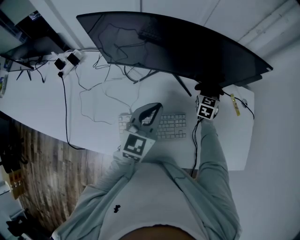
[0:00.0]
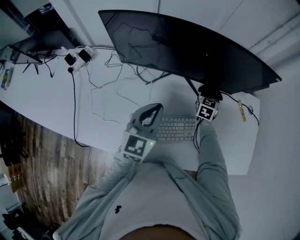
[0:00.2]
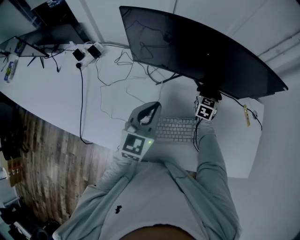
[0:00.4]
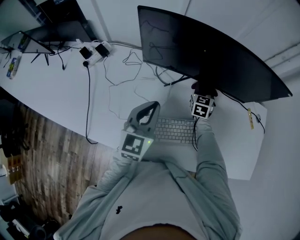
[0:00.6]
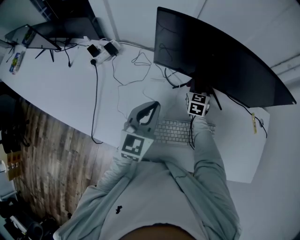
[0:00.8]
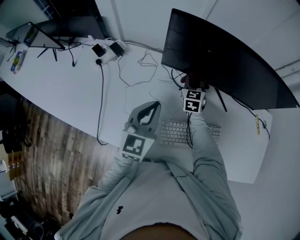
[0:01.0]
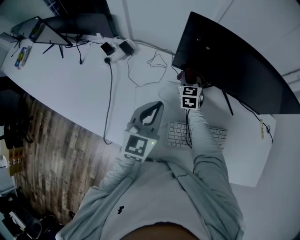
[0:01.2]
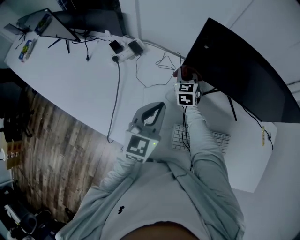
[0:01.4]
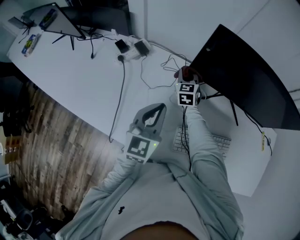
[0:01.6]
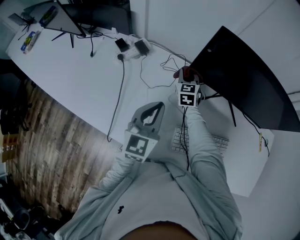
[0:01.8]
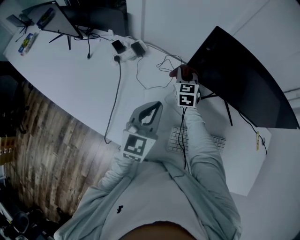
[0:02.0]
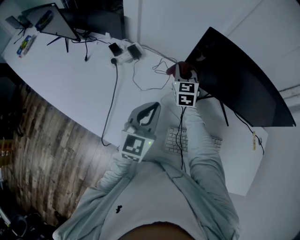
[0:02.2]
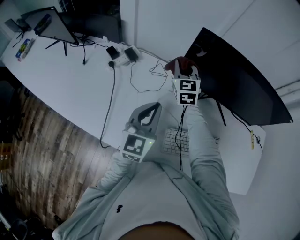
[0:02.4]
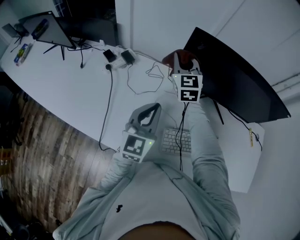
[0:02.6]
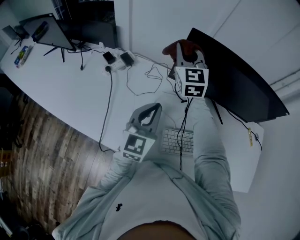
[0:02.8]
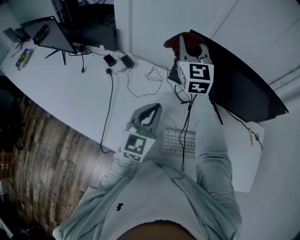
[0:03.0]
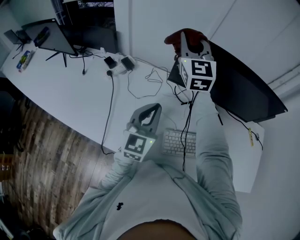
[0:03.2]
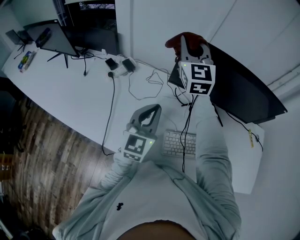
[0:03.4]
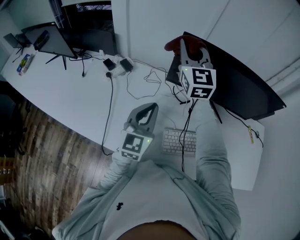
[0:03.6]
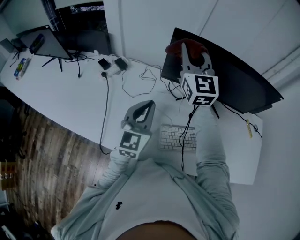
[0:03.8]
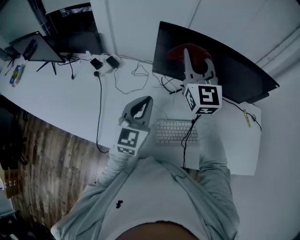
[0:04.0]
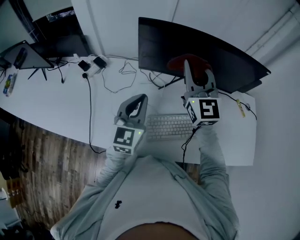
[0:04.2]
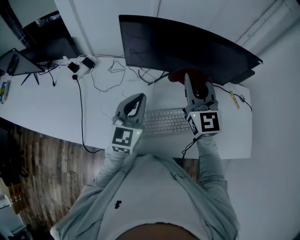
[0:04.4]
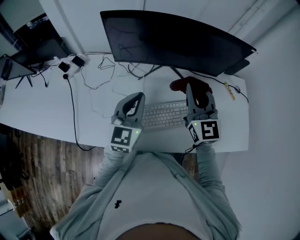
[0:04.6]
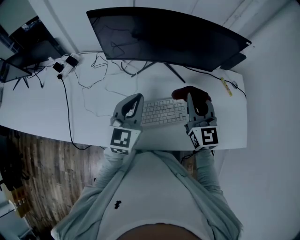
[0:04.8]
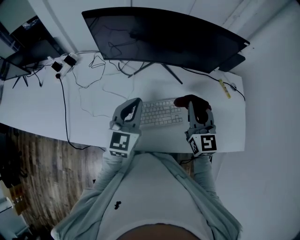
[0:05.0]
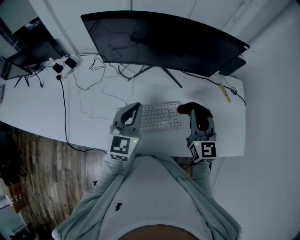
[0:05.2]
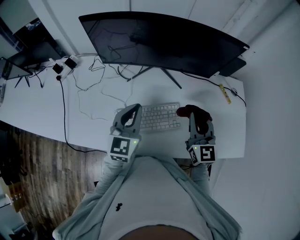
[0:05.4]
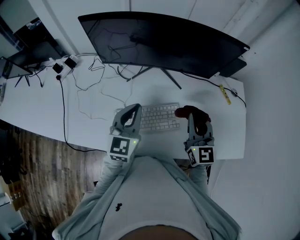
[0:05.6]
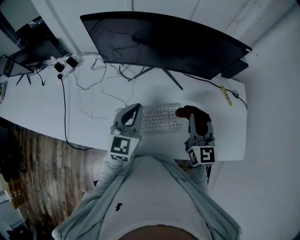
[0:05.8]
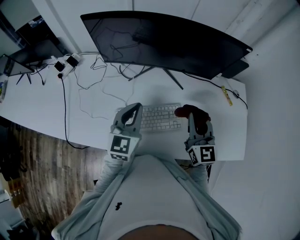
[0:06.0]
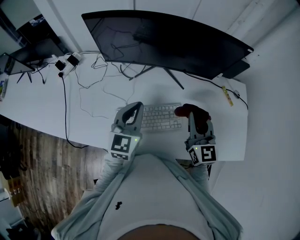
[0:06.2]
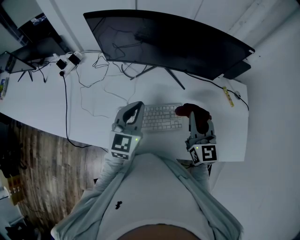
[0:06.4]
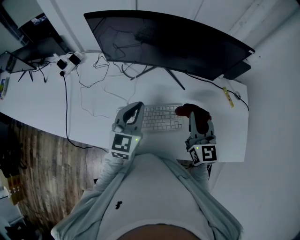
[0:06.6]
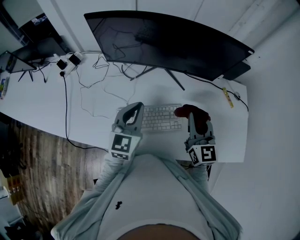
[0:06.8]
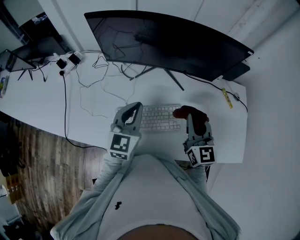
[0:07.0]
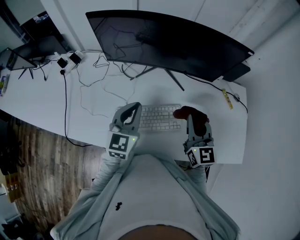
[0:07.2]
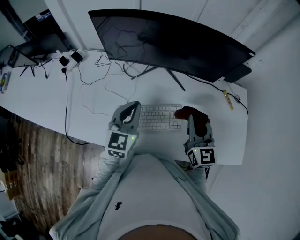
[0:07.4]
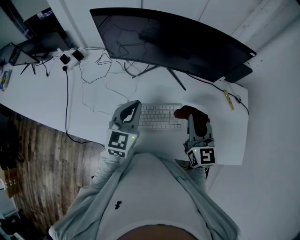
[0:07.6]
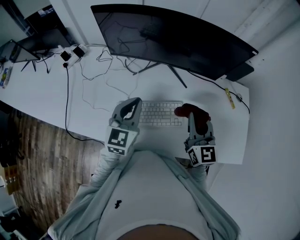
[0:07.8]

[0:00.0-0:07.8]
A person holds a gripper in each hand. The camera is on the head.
0.0 to 1.6 s: The right gripper moves about 50 cm, and changes its angle by roughly 30 degrees. Meanwhile the left gripper ends up some 30 cm from where it was.
1.6 to 3.2 s: The right gripper moves upward, roughly 35 cm, and tips its fingers upward by about 30 degrees. The left gripper ends up approximately 5 cm from where it was.
3.2 to 4.6 s: The left gripper shifts roughly 15 cm to the right. Meanwhile the right gripper travels to the right and backward by some 35 cm.
4.6 to 6.2 s: The left gripper shifts about 5 cm to the right. The right gripper goes approximately 15 cm to the right and downward.
6.2 to 7.8 s: Neither gripper changes place.

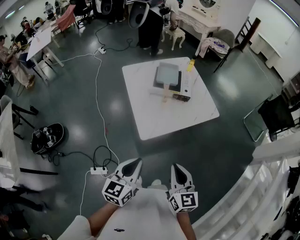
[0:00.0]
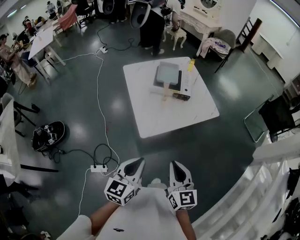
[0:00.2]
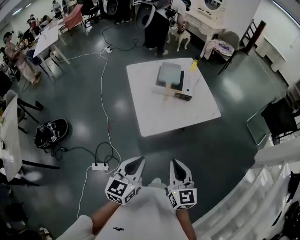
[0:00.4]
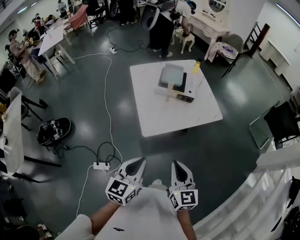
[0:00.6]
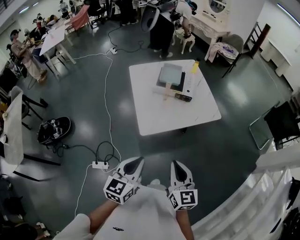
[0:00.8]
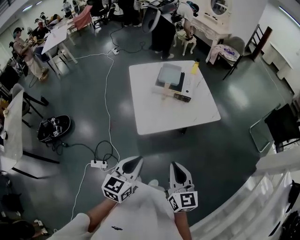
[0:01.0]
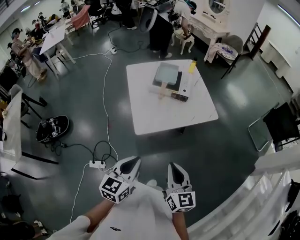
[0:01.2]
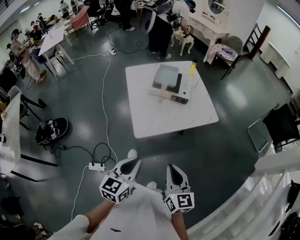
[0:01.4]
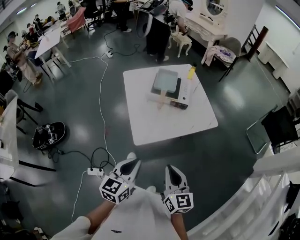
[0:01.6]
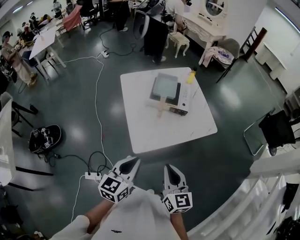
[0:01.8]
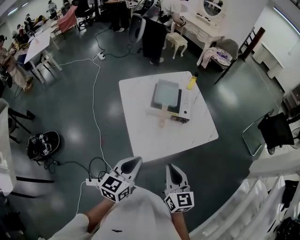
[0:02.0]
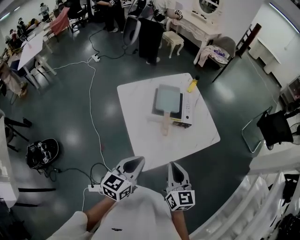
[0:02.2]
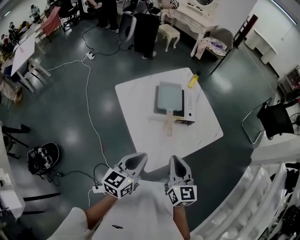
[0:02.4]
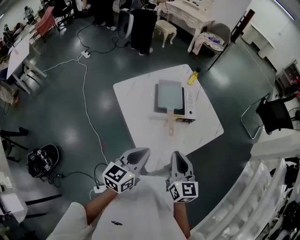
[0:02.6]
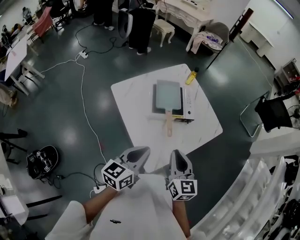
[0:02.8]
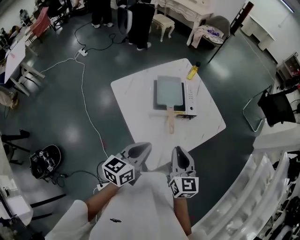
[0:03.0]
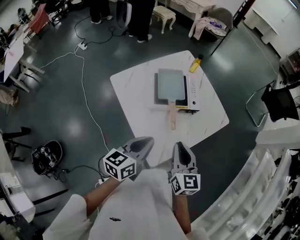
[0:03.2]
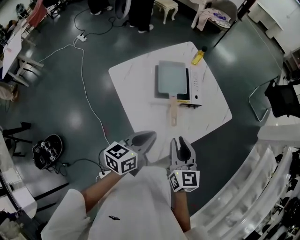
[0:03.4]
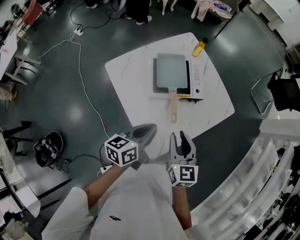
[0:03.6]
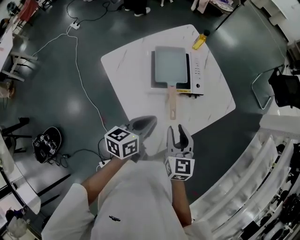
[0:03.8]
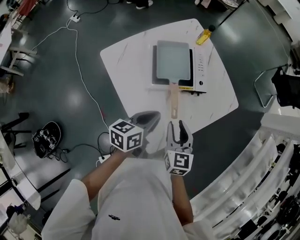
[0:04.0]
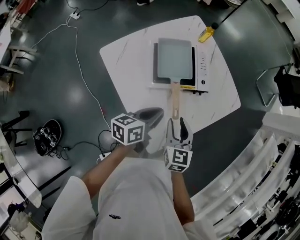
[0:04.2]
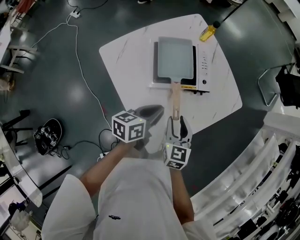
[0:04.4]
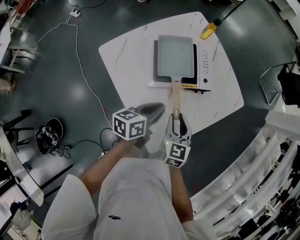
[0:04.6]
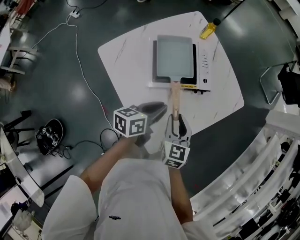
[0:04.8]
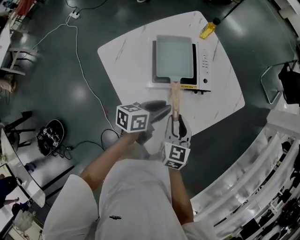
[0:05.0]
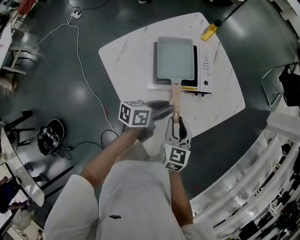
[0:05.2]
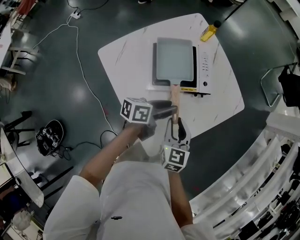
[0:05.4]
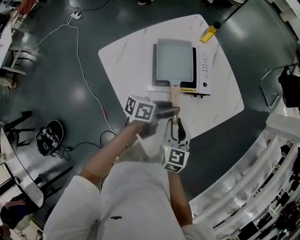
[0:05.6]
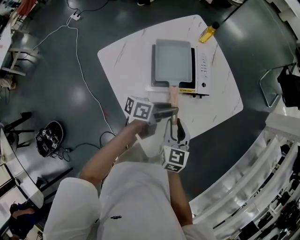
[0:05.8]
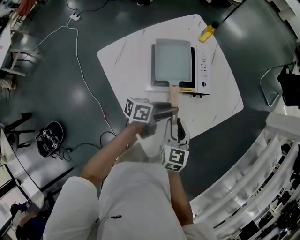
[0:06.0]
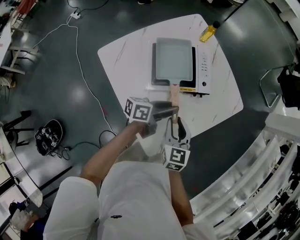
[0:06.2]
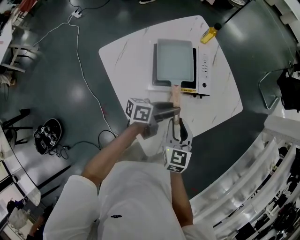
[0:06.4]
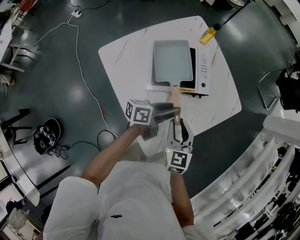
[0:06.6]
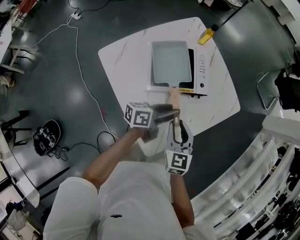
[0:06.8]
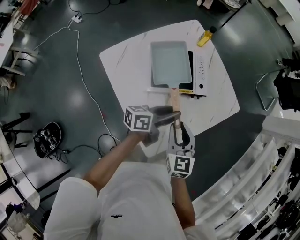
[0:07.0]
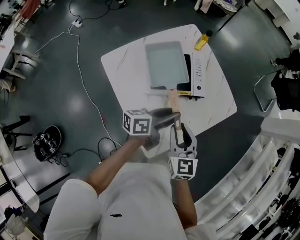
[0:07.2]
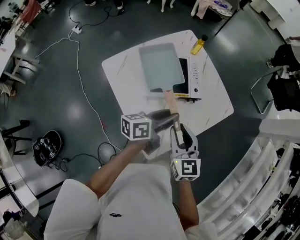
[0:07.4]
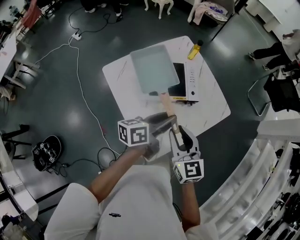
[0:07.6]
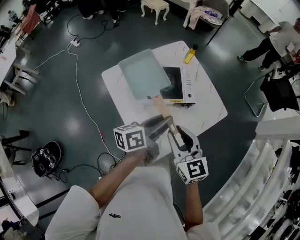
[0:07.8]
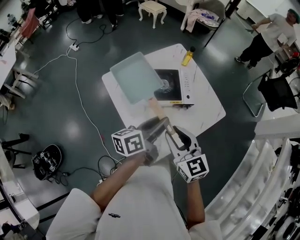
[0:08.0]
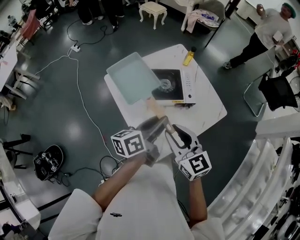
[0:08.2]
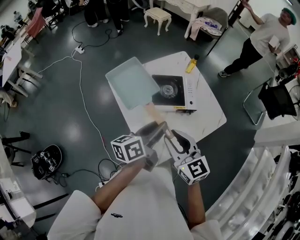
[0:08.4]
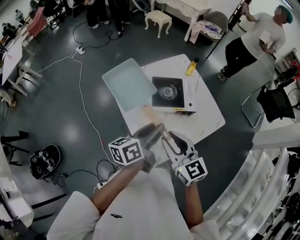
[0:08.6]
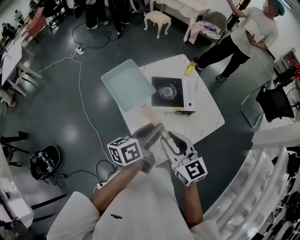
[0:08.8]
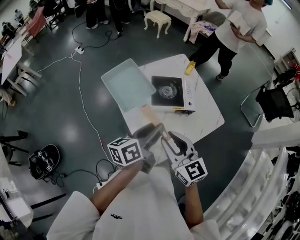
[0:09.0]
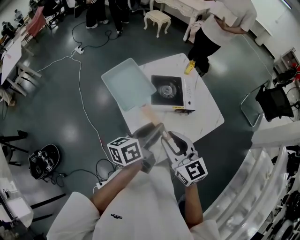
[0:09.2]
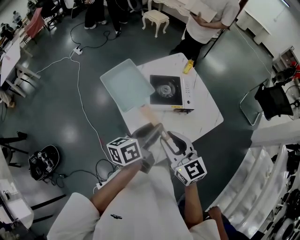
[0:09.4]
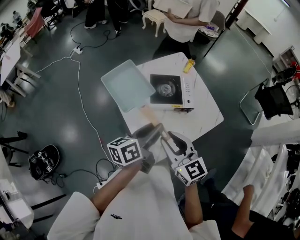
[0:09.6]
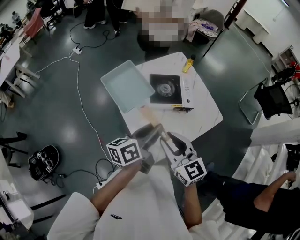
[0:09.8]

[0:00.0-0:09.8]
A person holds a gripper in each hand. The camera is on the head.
0.0 to 1.4 s: Both grippers travel together to the right, some 5 cm.
1.4 to 2.8 s: The grippers both shift forward and to the left by roughly 35 cm. The left gripper turns by about 30 degrees.
2.8 to 4.2 s: Both grippers travel together downward and forward, approximately 20 cm. The right gripper opens its fingers, while the left gripper swivels about 30 degrees.
4.2 to 5.6 s: The left gripper goes roughly 5 cm forward, turns by some 20 degrees, and opens up.
5.6 to 7.0 s: The grippers both shift upward by roughly 5 cm.
7.0 to 8.4 s: The two grippers go about 15 cm upward. The left gripper changes its angle by roughly 30 degrees; the right gripper swivels about 30 degrees.
8.4 to 9.8 s: The grippers move only a little.

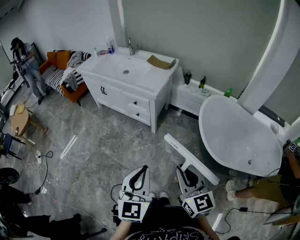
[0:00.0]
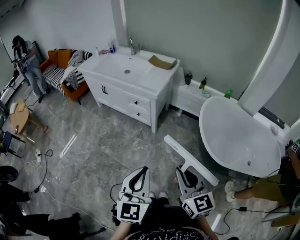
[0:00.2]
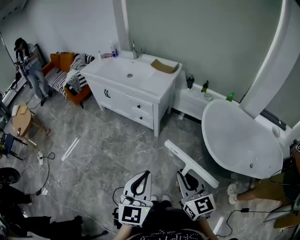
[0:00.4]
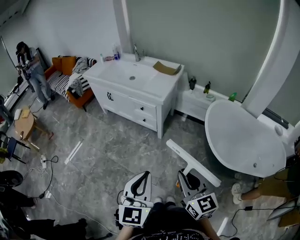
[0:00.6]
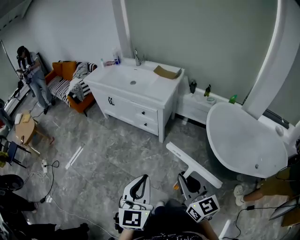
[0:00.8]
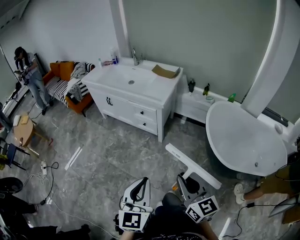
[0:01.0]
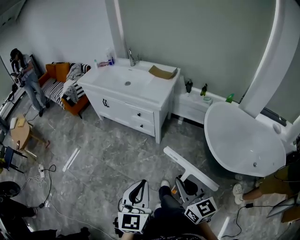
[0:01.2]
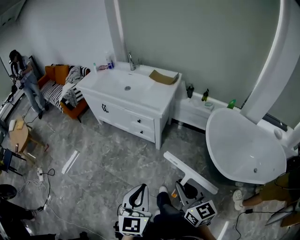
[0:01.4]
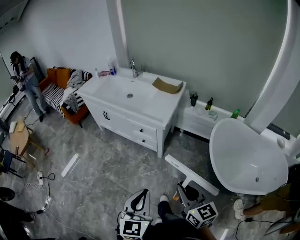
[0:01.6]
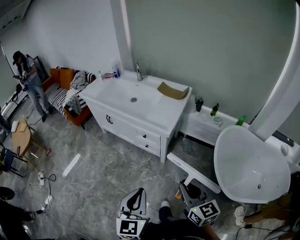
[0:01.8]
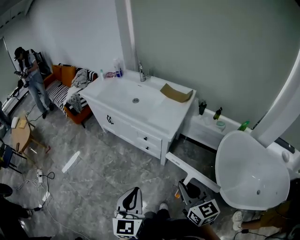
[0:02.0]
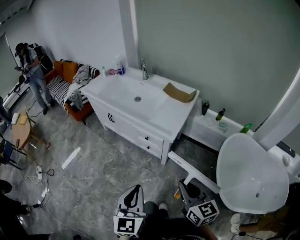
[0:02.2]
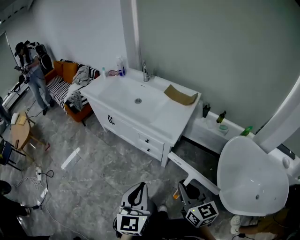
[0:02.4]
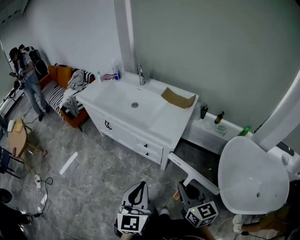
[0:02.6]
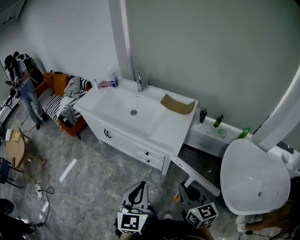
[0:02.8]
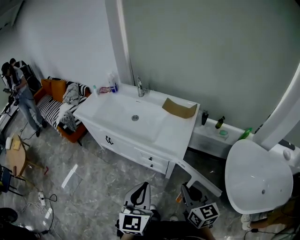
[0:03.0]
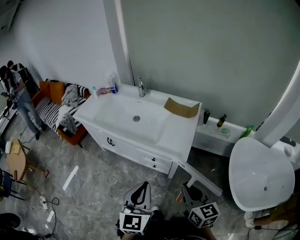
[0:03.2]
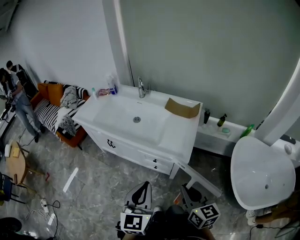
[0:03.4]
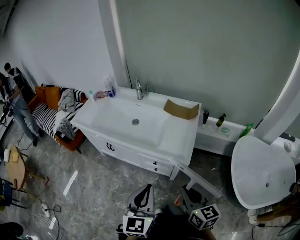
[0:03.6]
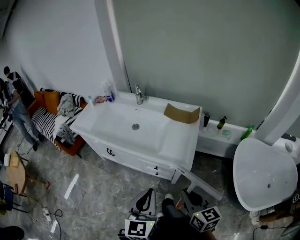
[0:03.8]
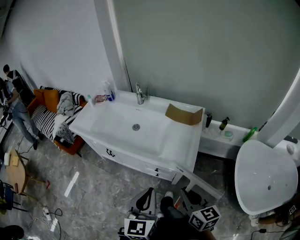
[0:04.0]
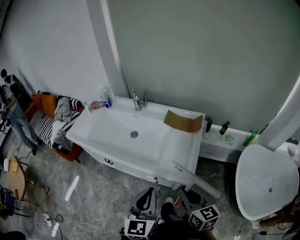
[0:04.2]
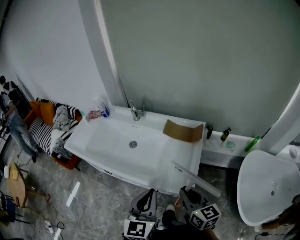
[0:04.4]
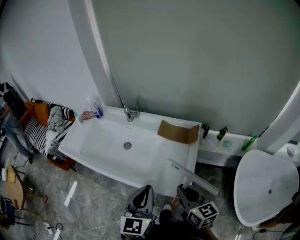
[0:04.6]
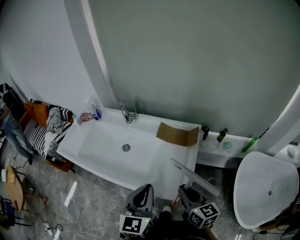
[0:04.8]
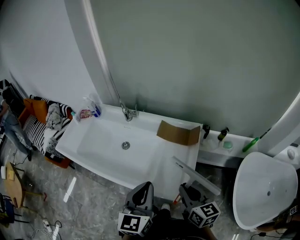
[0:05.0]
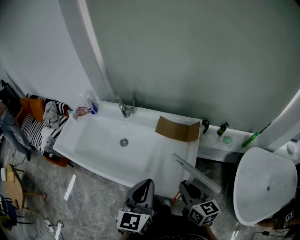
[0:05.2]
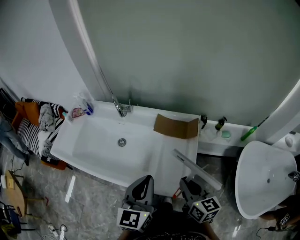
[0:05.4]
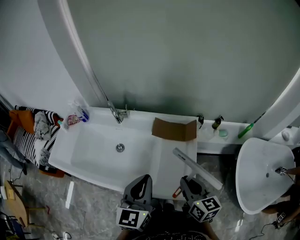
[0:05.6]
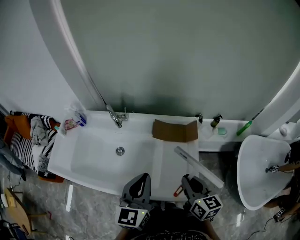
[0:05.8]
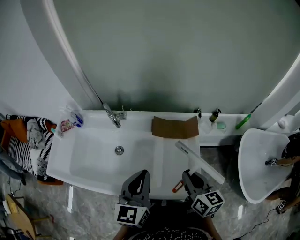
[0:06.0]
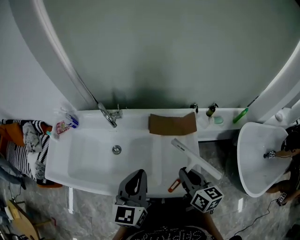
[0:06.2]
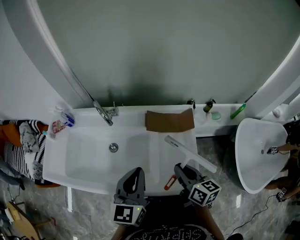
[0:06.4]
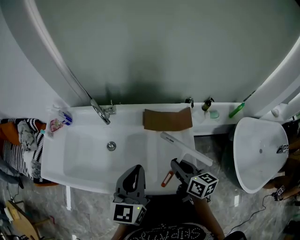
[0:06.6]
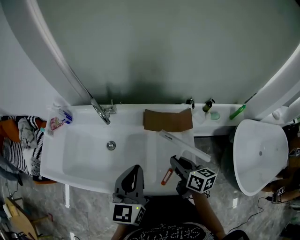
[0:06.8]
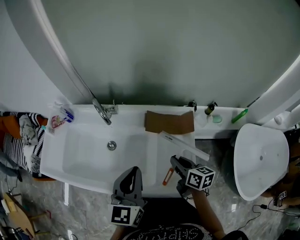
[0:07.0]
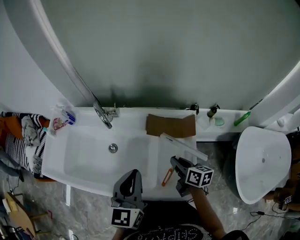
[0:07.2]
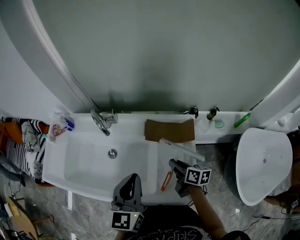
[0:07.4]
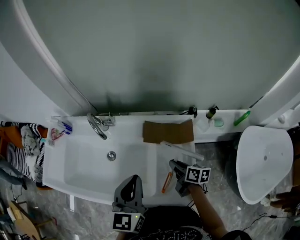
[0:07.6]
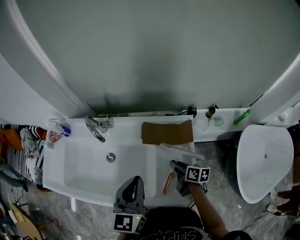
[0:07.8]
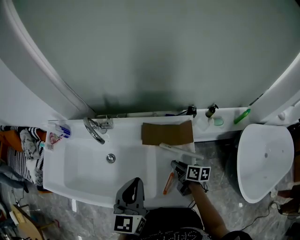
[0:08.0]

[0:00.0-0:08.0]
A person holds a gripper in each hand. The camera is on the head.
0.0 to 1.6 s: The left gripper moves forward and to the left, some 15 cm. The right gripper moves forward, approximately 15 cm.
1.6 to 3.2 s: Both grippers travel together forward, roughly 30 cm.
3.2 to 4.8 s: Both grippers move forward, some 25 cm.
4.8 to 6.4 s: Both grippers move forward and to the left, about 15 cm. The right gripper rotates some 20 degrees.
6.4 to 8.0 s: The right gripper goes approximately 20 cm downward and forward, and rotates roughly 30 degrees. Meanwhile the left gripper moves roughly 5 cm.
